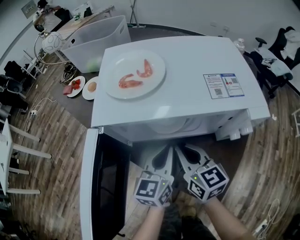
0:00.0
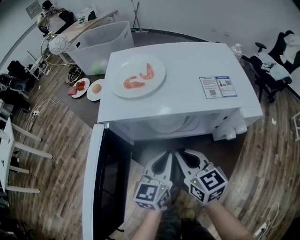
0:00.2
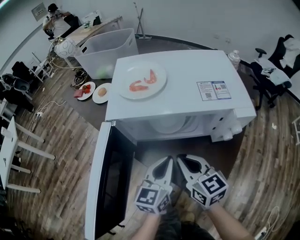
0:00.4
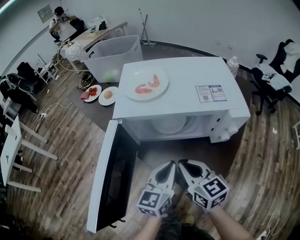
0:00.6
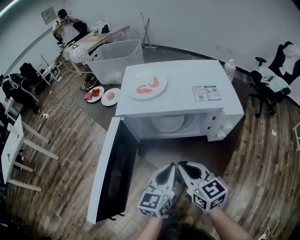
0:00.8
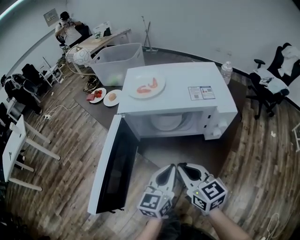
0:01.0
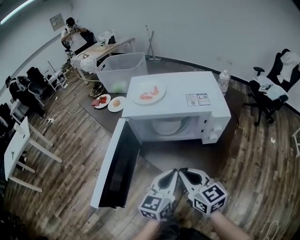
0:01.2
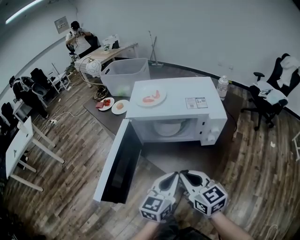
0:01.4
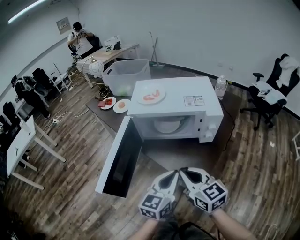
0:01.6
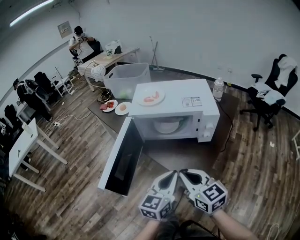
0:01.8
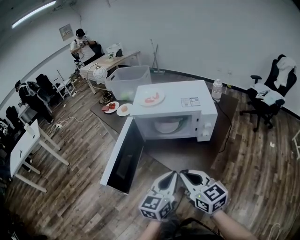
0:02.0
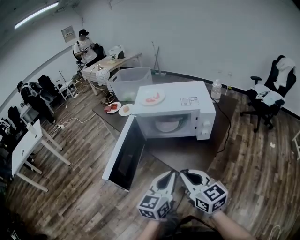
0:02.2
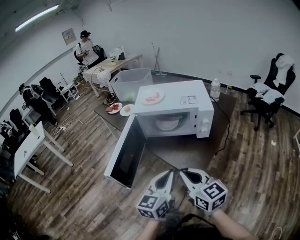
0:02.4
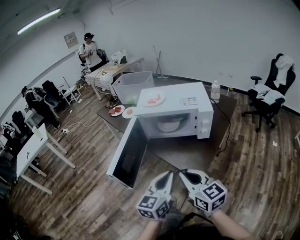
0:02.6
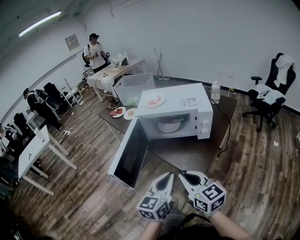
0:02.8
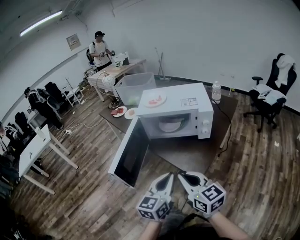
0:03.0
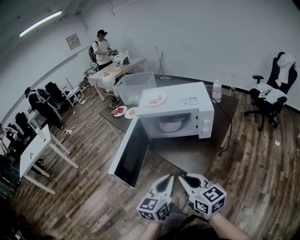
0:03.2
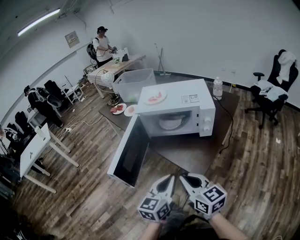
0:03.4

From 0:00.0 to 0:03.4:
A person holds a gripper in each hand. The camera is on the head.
From 0:00.0 to 0:01.6: Both grippers travel together backward and upward, some 25 cm.
From 0:01.6 to 0:03.4: Both grippers travel together backward, approximately 10 cm.

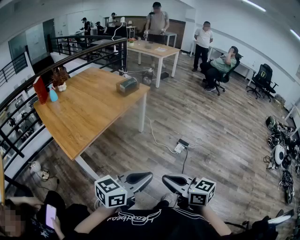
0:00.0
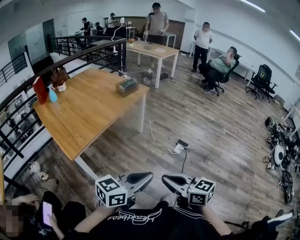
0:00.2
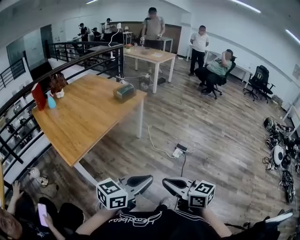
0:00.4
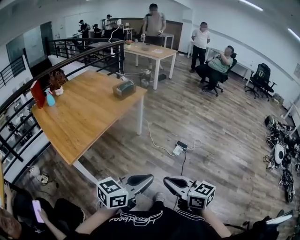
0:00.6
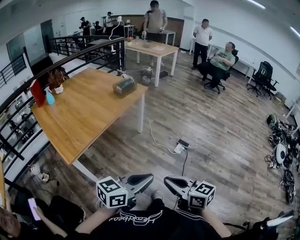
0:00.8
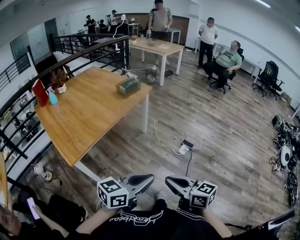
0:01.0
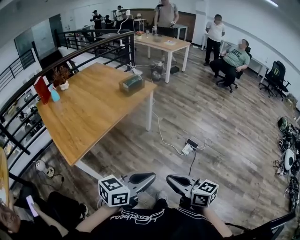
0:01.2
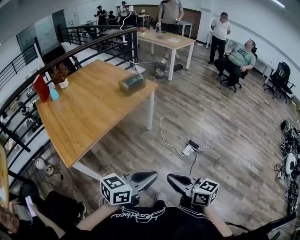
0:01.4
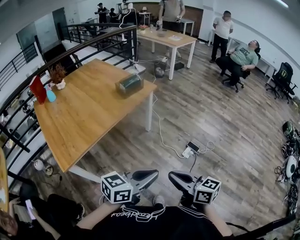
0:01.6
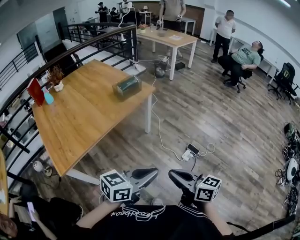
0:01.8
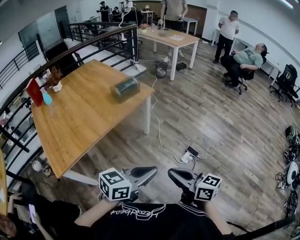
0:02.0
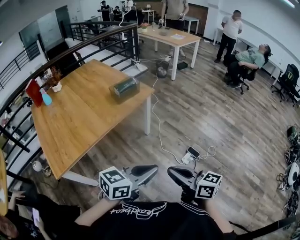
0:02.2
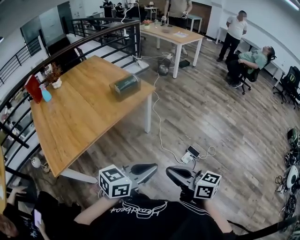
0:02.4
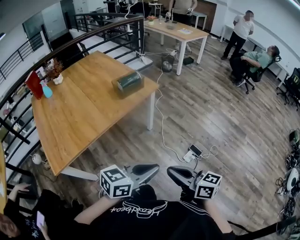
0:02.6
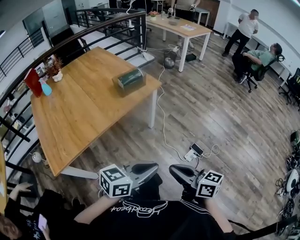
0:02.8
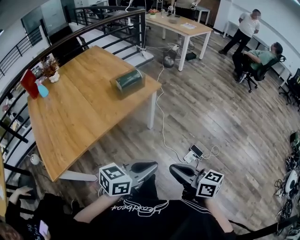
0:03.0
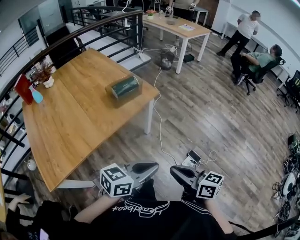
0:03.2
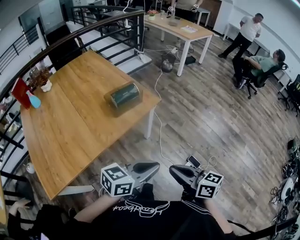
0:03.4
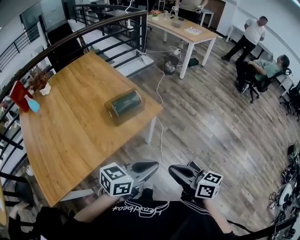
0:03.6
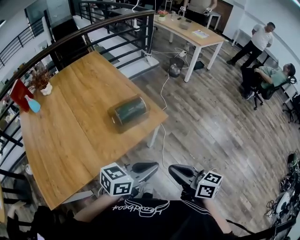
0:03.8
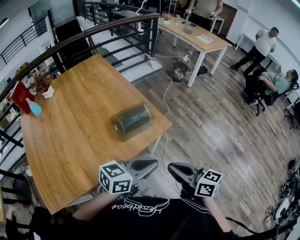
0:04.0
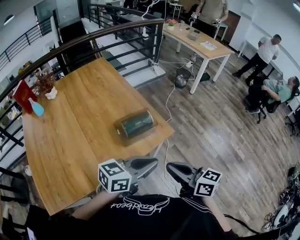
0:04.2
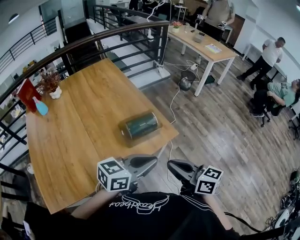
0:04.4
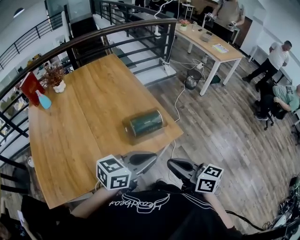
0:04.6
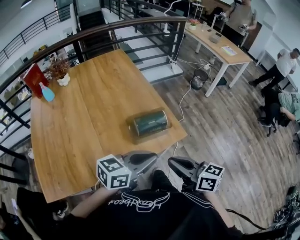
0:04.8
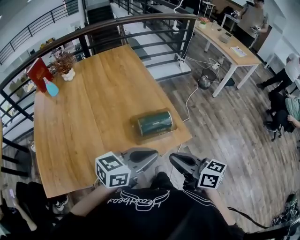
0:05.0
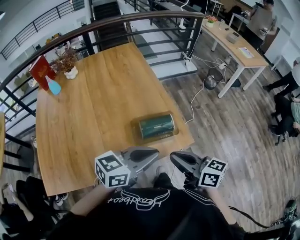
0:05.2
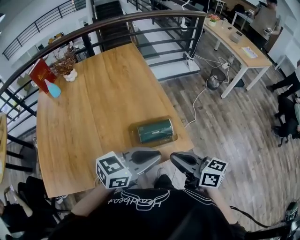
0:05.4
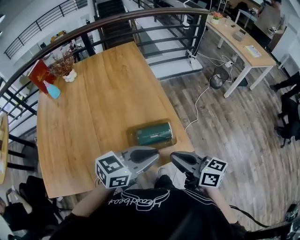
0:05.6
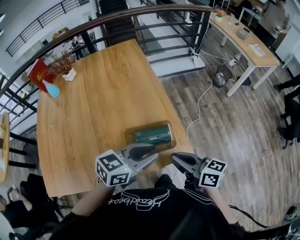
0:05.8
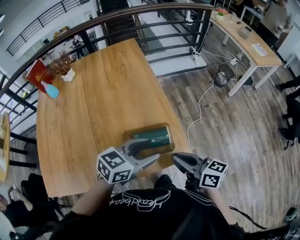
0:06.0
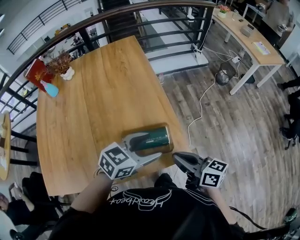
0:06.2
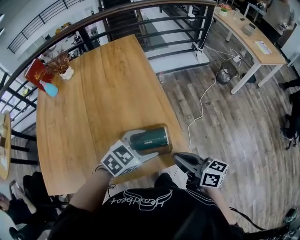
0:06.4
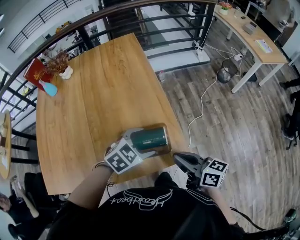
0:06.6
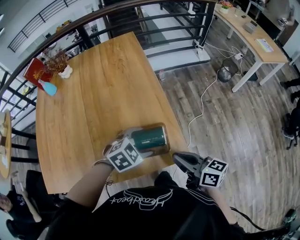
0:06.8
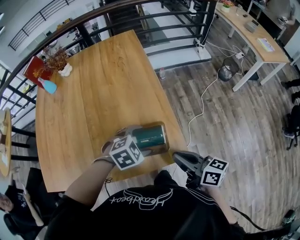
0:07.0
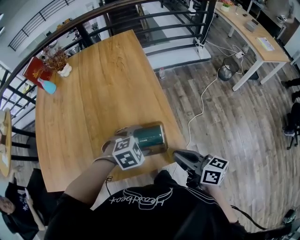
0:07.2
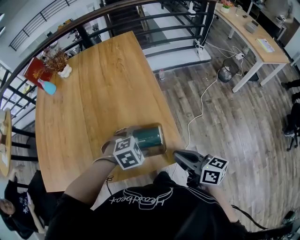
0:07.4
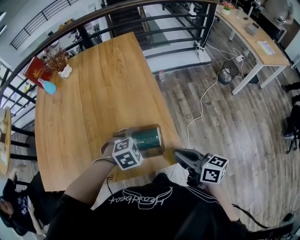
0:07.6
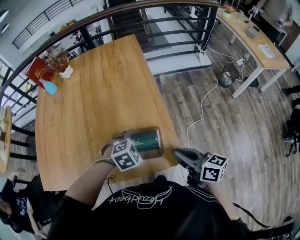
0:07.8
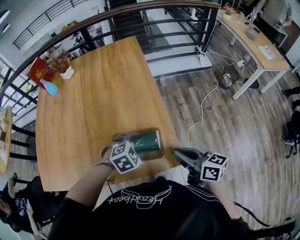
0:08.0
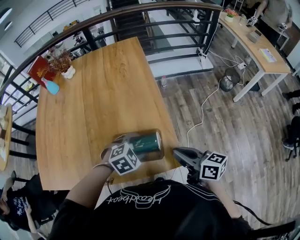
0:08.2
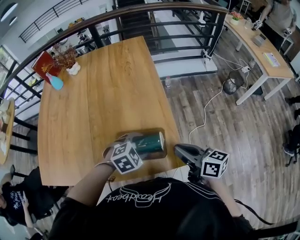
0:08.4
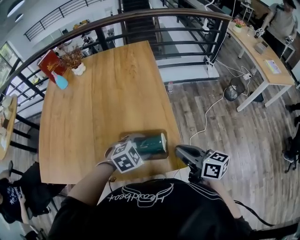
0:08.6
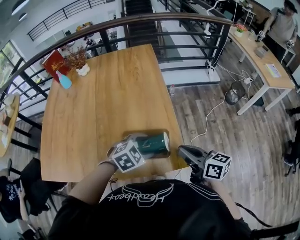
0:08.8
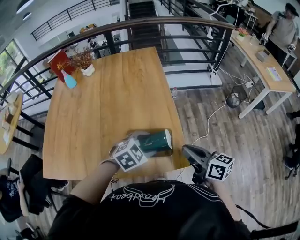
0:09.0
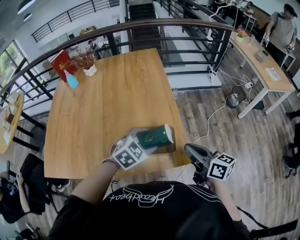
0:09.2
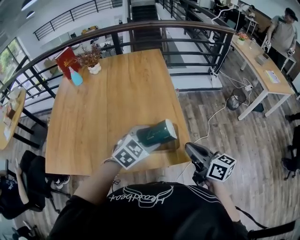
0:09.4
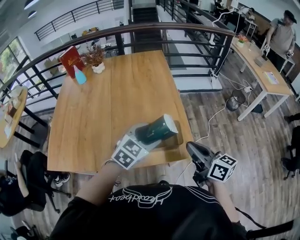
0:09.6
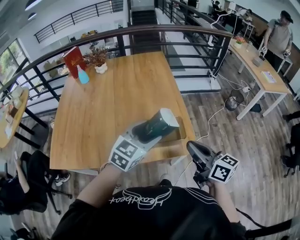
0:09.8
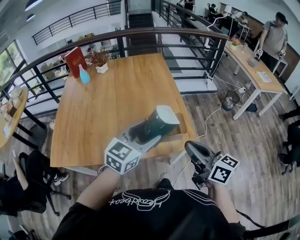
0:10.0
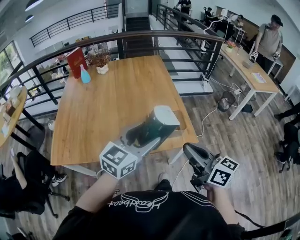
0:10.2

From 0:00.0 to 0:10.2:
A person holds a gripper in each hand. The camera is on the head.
From 0:00.0 to 0:01.4: The two grippers go roughly 20 cm forward.
From 0:01.4 to 0:03.0: Both grippers travel together forward, approximately 30 cm.
From 0:03.0 to 0:04.4: The pair of grippers is taken forward, some 40 cm.
From 0:04.4 to 0:05.8: Both grippers travel together forward, approximately 20 cm.
From 0:05.8 to 0:07.2: The right gripper goes about 5 cm to the right; the left gripper moves downward and forward, some 15 cm, angles its fingers downward, by some 50 degrees, and opens up.
From 0:07.2 to 0:08.8: The grippers move only a little.
From 0:08.8 to 0:10.2: The right gripper is displaced backward, upward and to the left by about 30 cm. Meanwhile the left gripper moves upward, backward and to the left, approximately 35 cm, and tips its fingers upward by approximately 50 degrees.

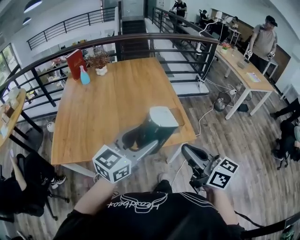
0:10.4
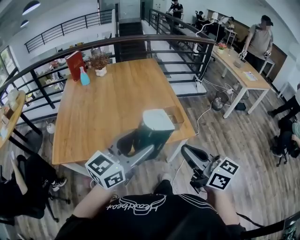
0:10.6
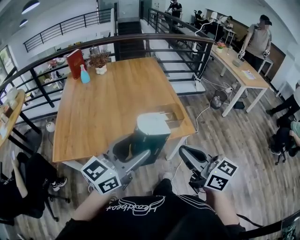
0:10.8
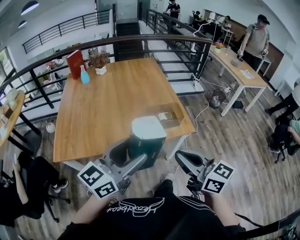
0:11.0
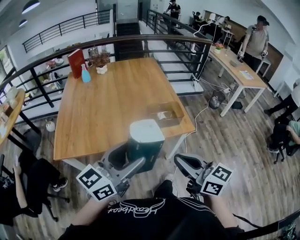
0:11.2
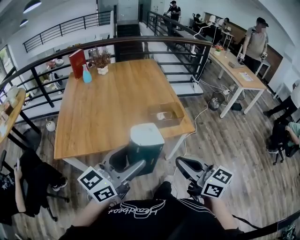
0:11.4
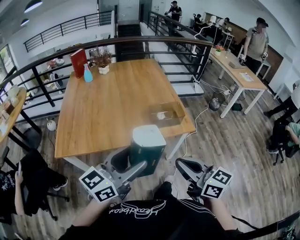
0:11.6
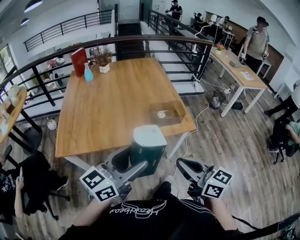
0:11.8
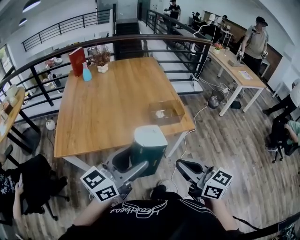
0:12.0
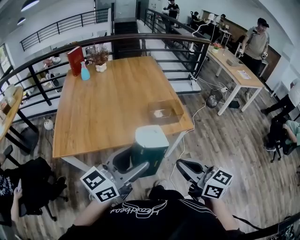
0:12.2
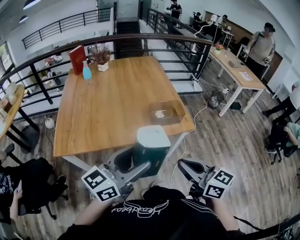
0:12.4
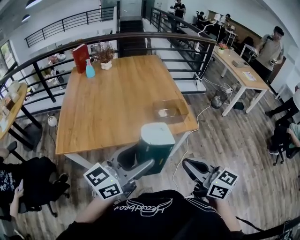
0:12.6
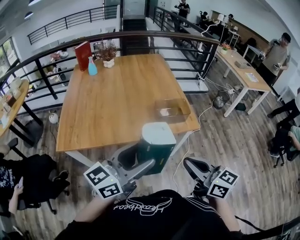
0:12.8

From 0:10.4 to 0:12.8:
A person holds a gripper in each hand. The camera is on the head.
From 0:10.4 to 0:11.6: The grippers both shift backward and to the left by some 15 cm.
From 0:11.6 to 0:12.8: Both grippers stay put.

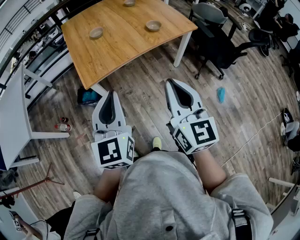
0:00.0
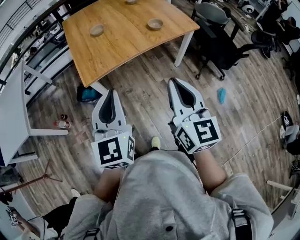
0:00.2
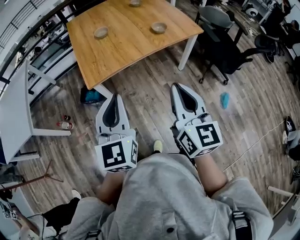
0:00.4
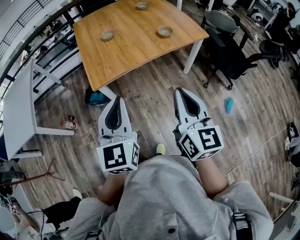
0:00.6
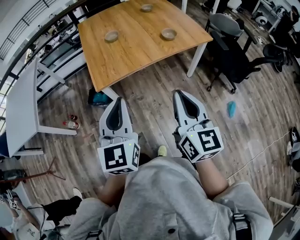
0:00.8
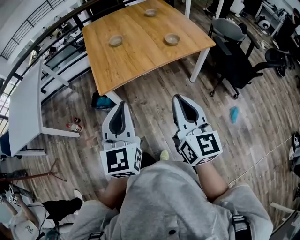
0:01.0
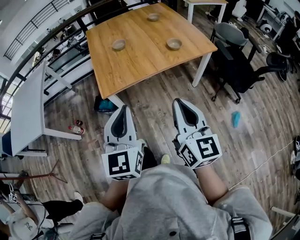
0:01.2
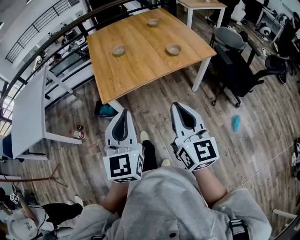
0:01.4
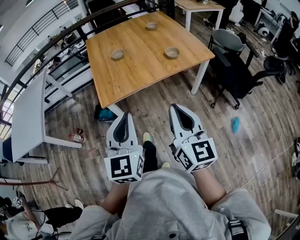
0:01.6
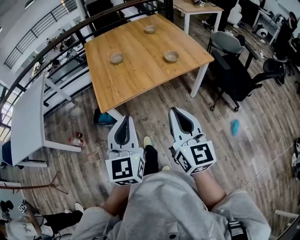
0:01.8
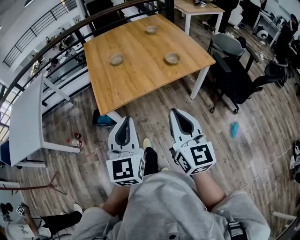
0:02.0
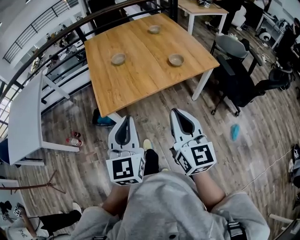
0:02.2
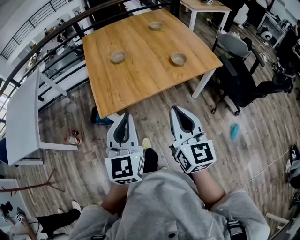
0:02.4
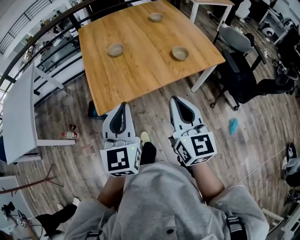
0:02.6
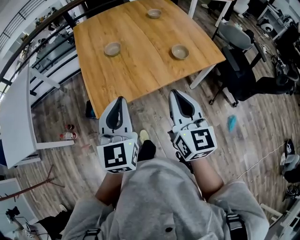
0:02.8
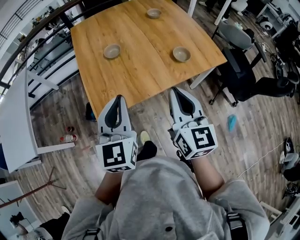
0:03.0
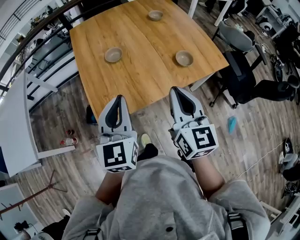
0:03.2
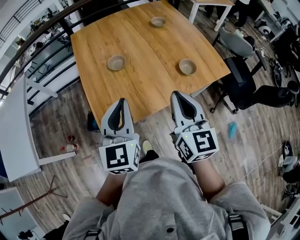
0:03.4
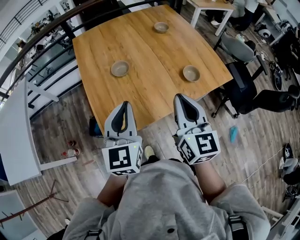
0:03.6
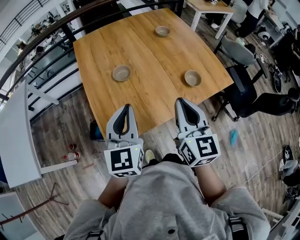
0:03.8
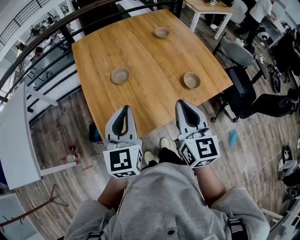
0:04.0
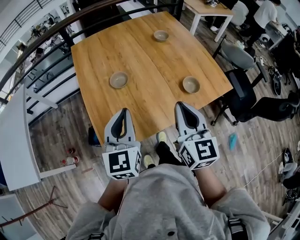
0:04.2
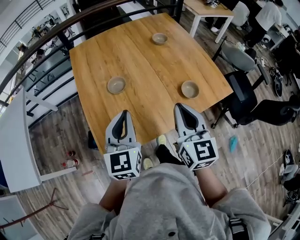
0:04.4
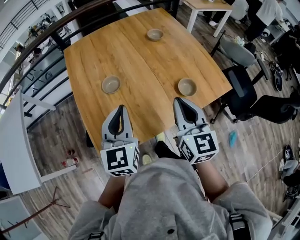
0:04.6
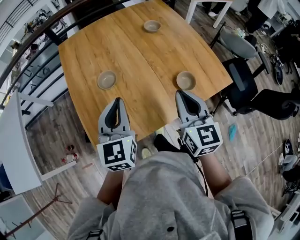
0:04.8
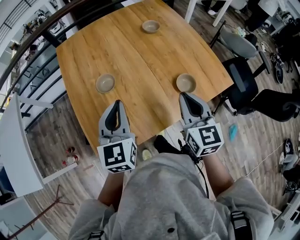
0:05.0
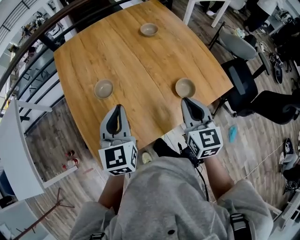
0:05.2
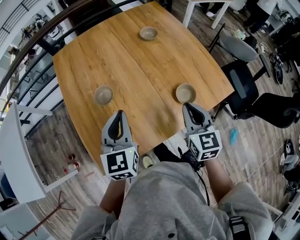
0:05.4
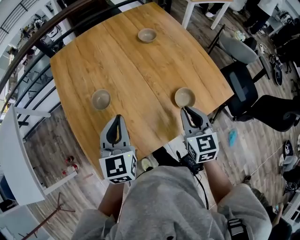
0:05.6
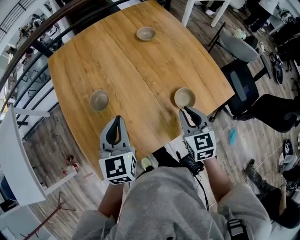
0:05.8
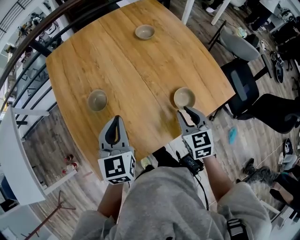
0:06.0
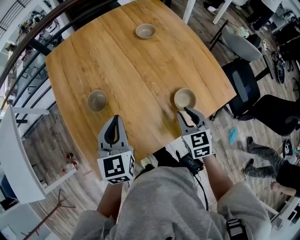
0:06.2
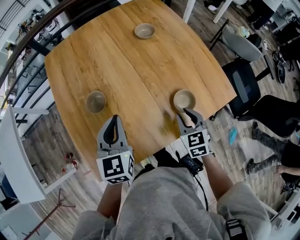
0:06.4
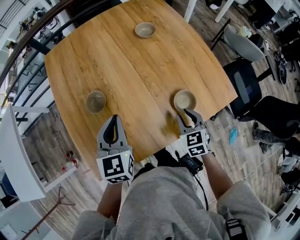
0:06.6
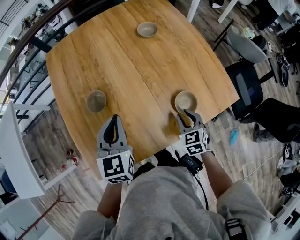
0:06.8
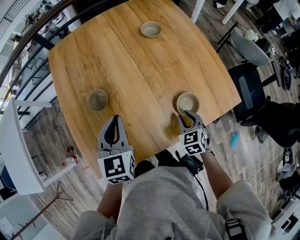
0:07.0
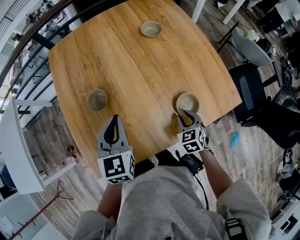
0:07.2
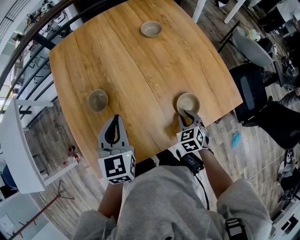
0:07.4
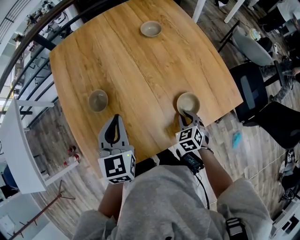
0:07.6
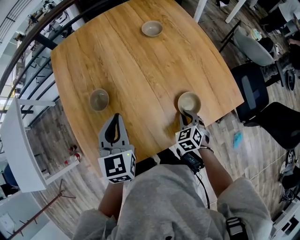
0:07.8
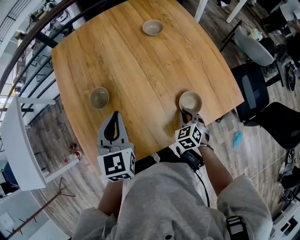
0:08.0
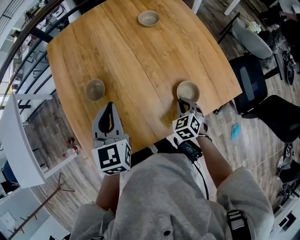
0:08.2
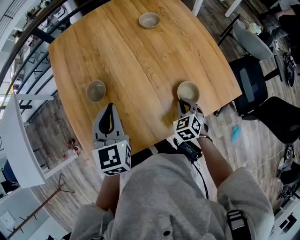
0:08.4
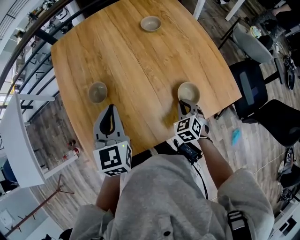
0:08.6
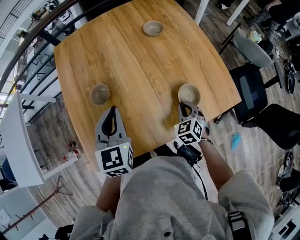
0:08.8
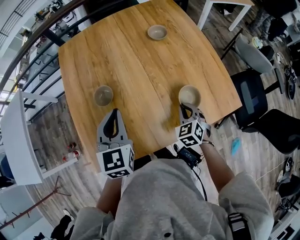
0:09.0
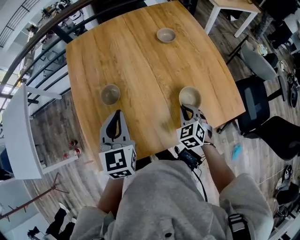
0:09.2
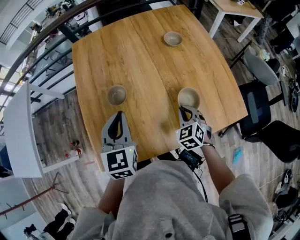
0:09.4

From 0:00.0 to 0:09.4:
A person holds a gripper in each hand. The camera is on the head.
From 0:00.0 to 0:01.6: The grippers stay close to where they were, moving slightly.
From 0:01.6 to 0:03.2: Both grippers move forward, about 30 cm.
From 0:03.2 to 0:04.8: The grippers both shift forward by roughly 15 cm.
From 0:04.8 to 0:06.2: The left gripper is displaced forward and downward by some 10 cm; the right gripper goes about 20 cm downward and to the right, and turns by roughly 20 degrees.
From 0:06.2 to 0:07.8: The right gripper travels downward by some 10 cm, and turns by roughly 30 degrees.
From 0:07.8 to 0:09.4: The left gripper goes about 5 cm to the left, while the right gripper heads upward and to the left, covering about 10 cm.
